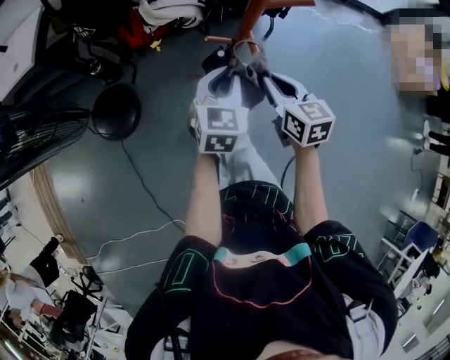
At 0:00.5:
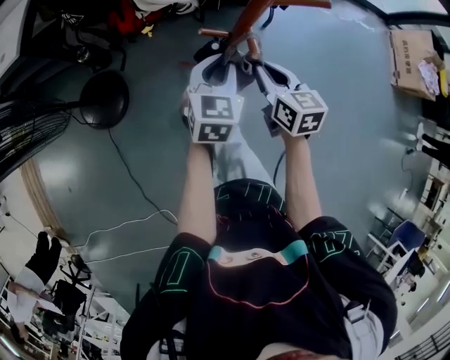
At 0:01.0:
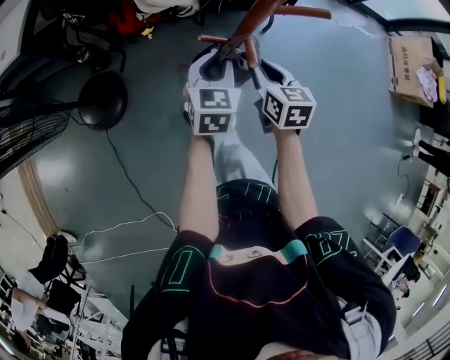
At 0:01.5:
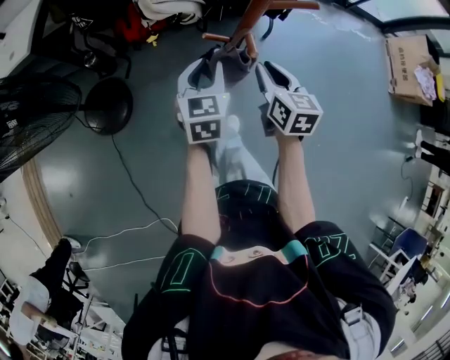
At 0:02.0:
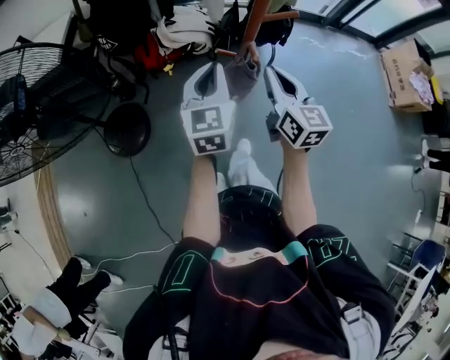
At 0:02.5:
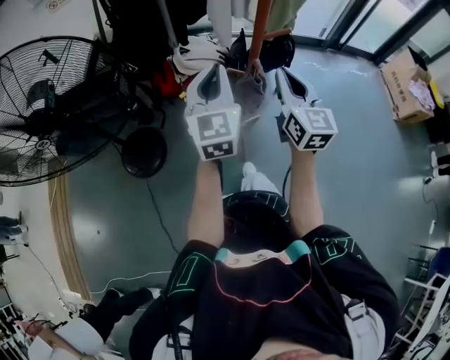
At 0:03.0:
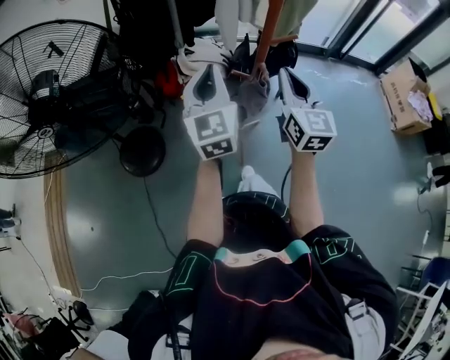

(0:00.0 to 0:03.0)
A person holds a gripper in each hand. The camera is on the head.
0:01.5 - 0:03.0: The left gripper shifts approximately 25 cm upward and to the left, changes its angle by roughly 30 degrees, and closes its fingers, while the right gripper travels upward by some 20 cm, and changes its angle by about 30 degrees.

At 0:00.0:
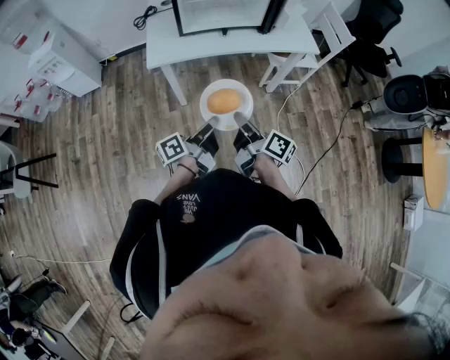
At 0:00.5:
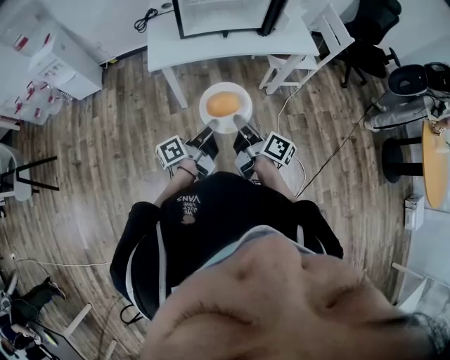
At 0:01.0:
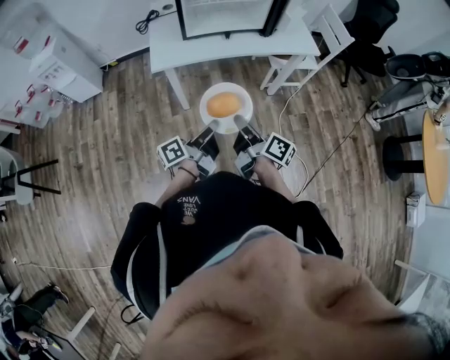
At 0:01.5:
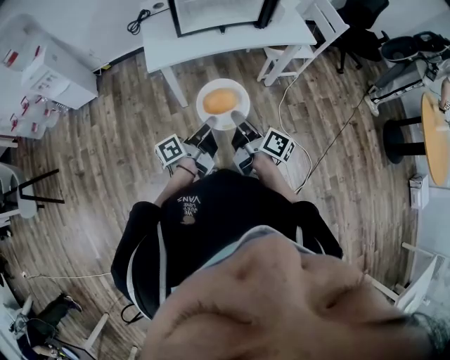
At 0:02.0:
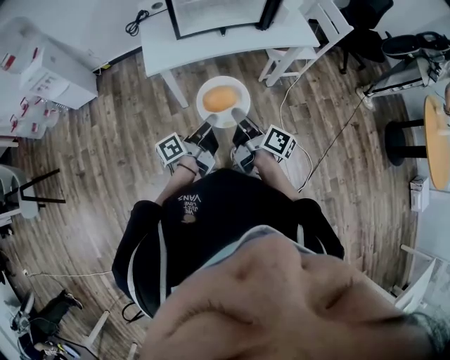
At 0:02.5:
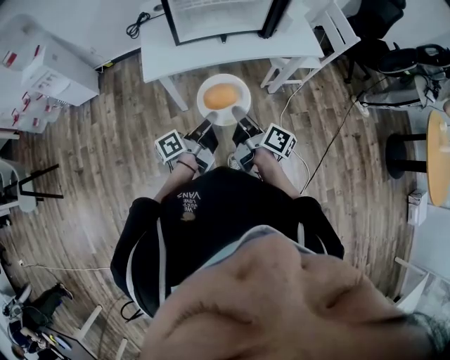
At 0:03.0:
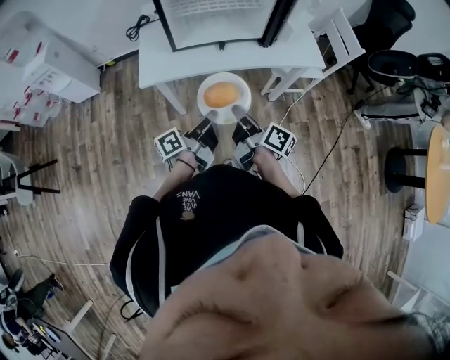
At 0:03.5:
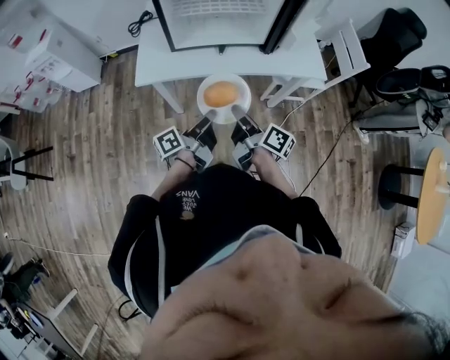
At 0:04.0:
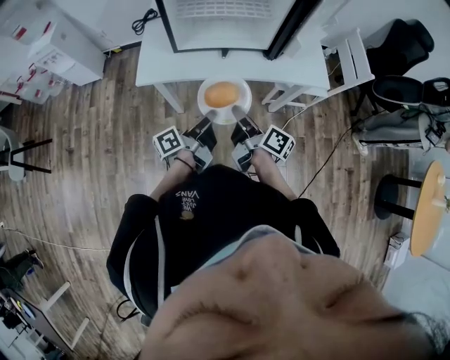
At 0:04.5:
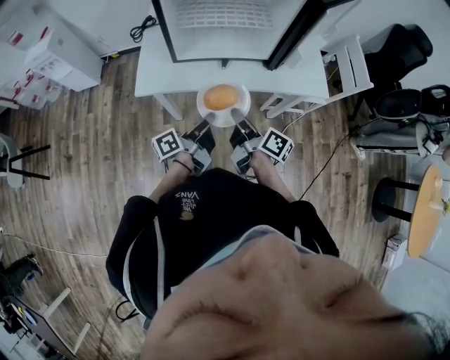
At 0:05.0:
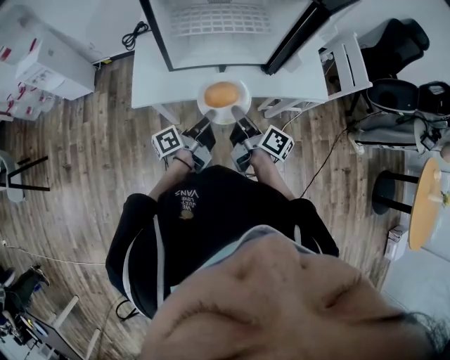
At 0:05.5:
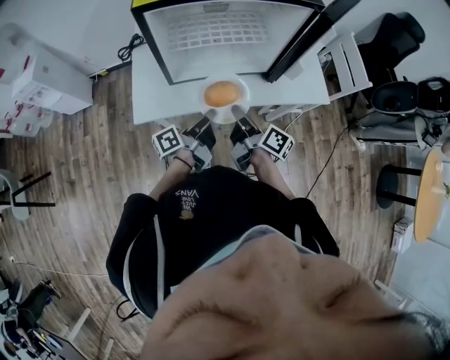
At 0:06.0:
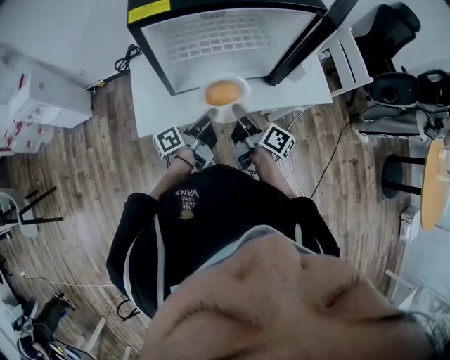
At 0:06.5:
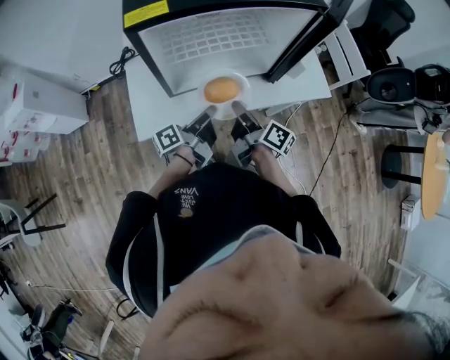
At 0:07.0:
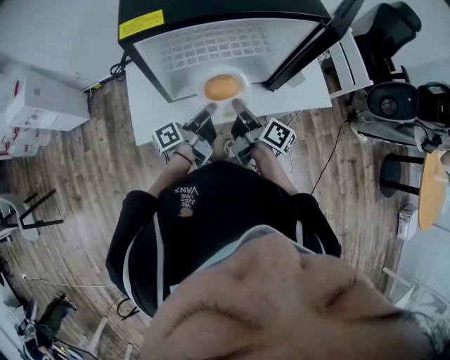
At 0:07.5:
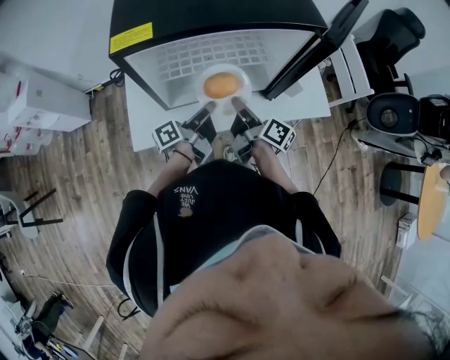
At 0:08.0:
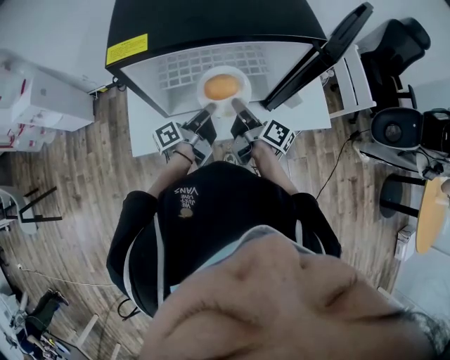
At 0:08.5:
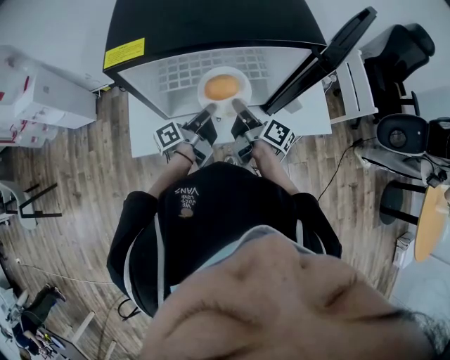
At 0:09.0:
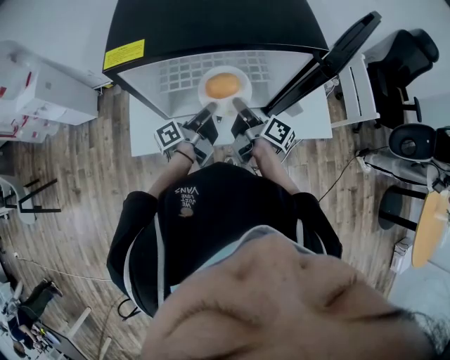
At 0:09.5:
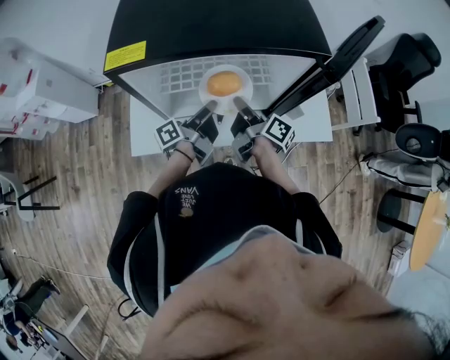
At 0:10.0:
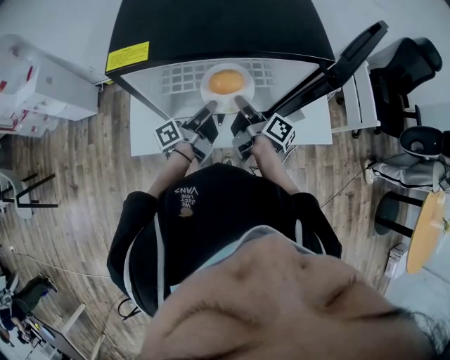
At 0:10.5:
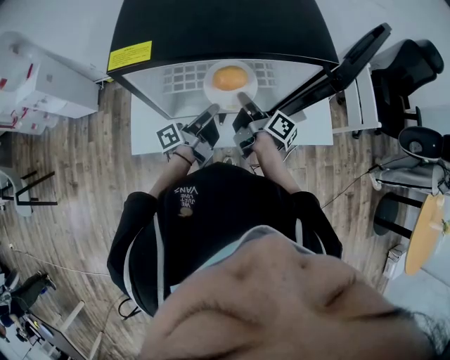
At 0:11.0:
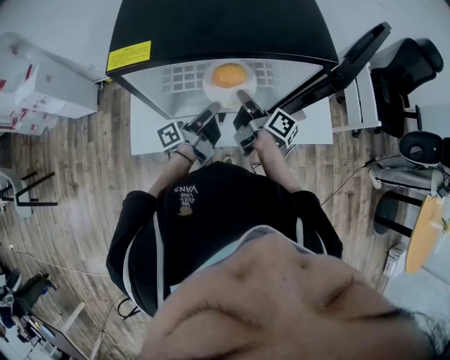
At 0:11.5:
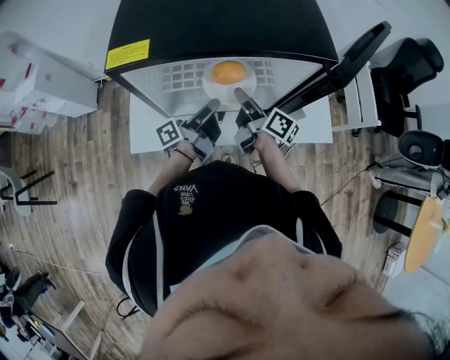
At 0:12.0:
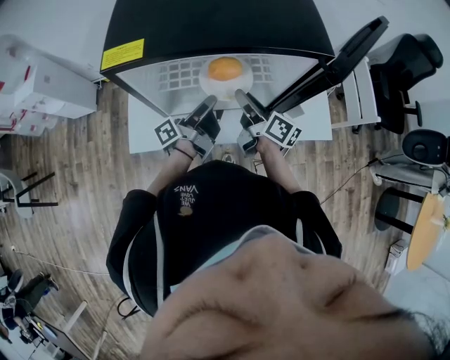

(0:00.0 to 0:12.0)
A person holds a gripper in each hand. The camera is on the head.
0:00.0 - 0:02.0: The right gripper moves some 5 cm. The left gripper changes place by approximately 5 cm.
0:02.0 - 0:04.0: Both grippers move forward and to the right, roughly 20 cm.
0:04.0 - 0:06.0: Both grippers travel together forward, about 15 cm.
0:06.0 - 0:08.0: Both grippers travel together forward, about 10 cm.
0:08.0 - 0:10.0: The grippers stay close to where they were, moving slightly.
0:10.0 - 0:12.0: The right gripper changes its angle by about 20 degrees, and opens up.

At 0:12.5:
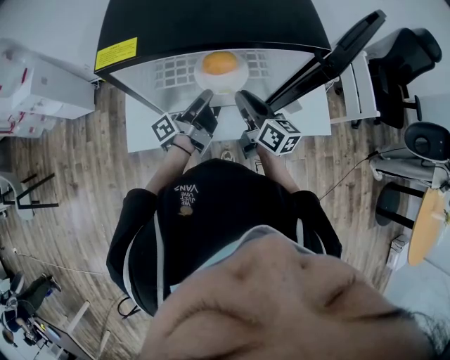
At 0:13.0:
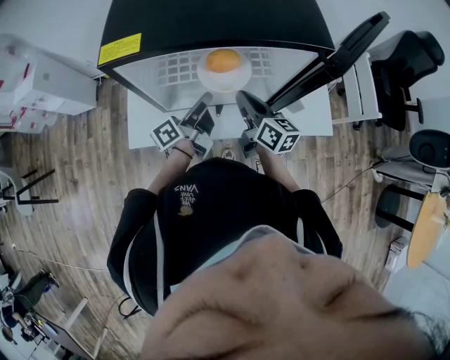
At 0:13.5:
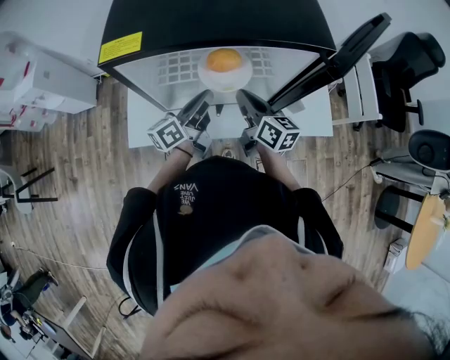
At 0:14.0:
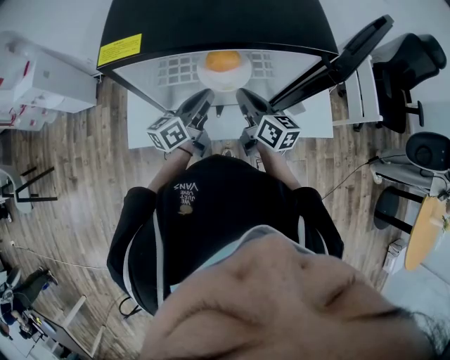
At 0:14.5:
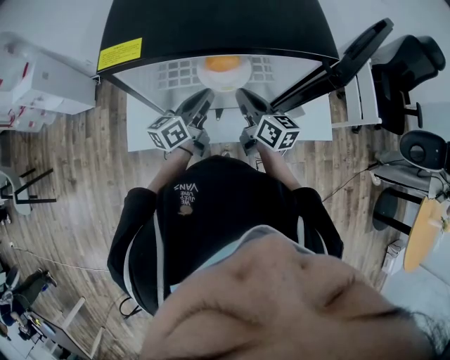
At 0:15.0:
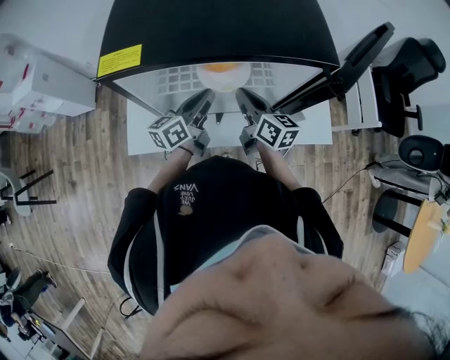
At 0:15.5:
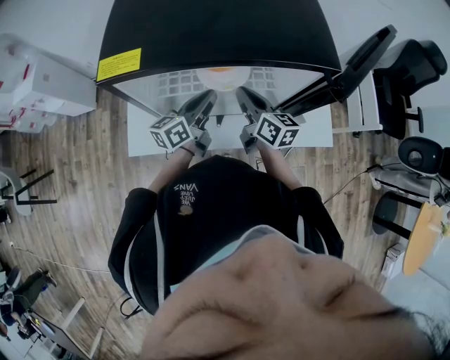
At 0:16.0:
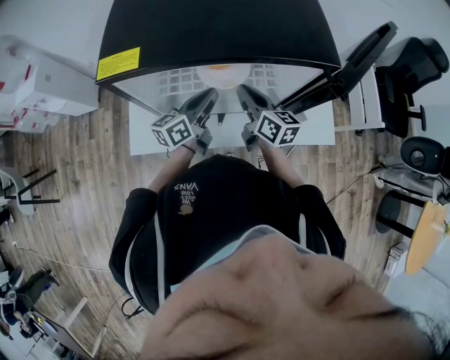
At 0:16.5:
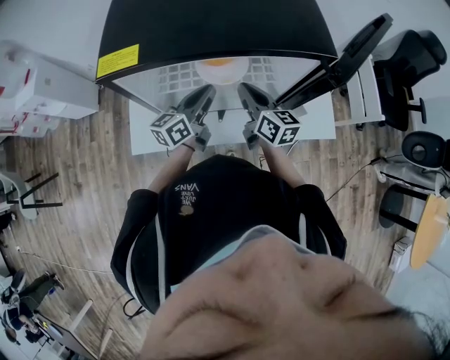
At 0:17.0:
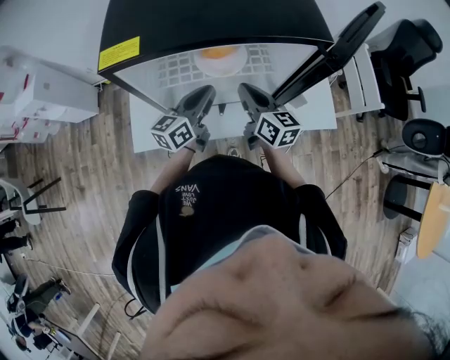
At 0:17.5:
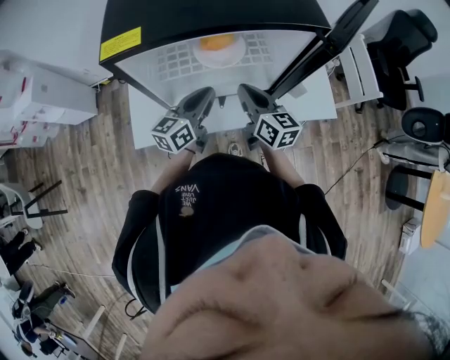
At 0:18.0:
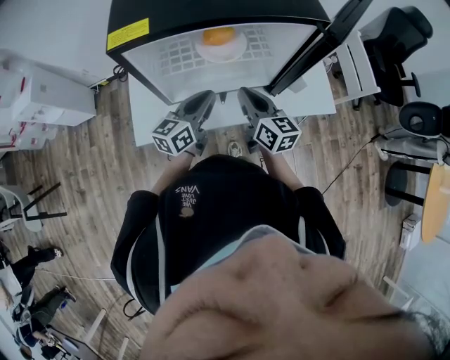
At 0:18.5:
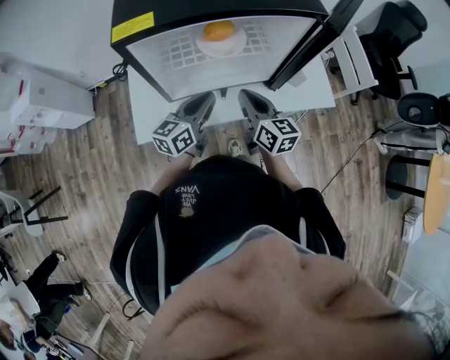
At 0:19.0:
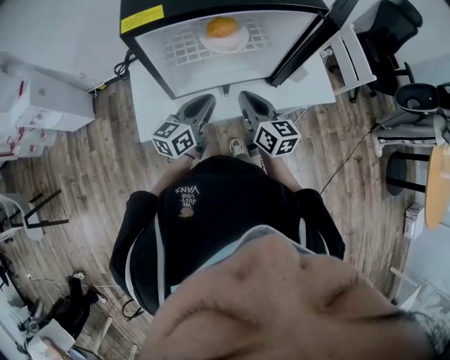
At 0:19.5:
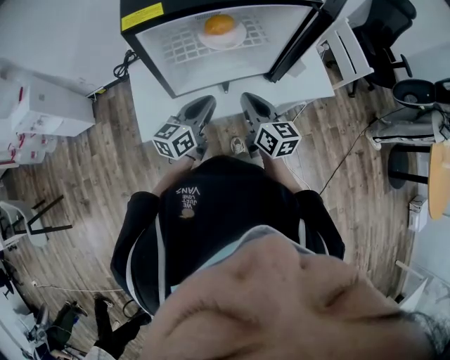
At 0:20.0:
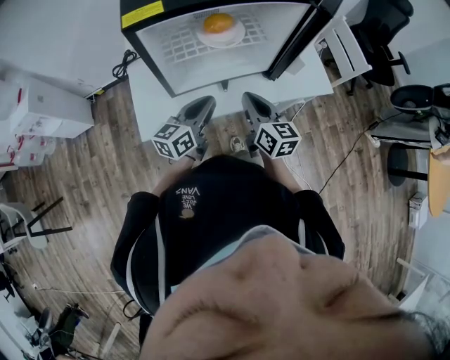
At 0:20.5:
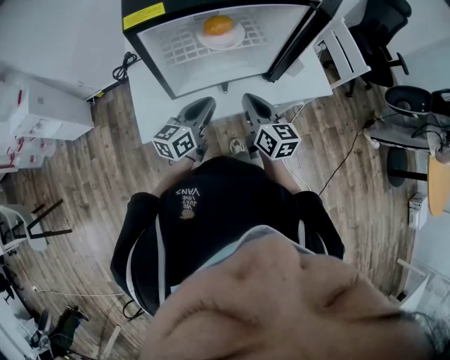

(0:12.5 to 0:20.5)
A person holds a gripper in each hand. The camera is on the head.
0:12.5 - 0:14.5: The left gripper rotates around the line of its fingers by approximately 40 degrees, clockwise from behind.
0:14.5 - 0:16.5: The grippers move only a little.
0:16.5 - 0:18.5: The two grippers go approximately 10 cm backward.
0:18.5 - 0:20.5: The right gripper travels backward by some 5 cm.

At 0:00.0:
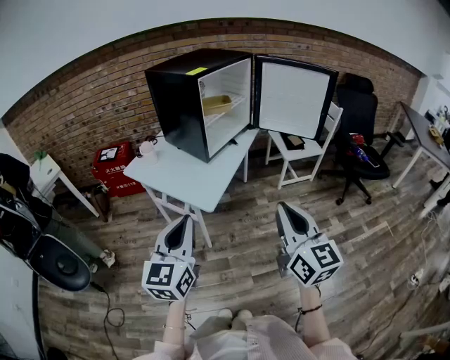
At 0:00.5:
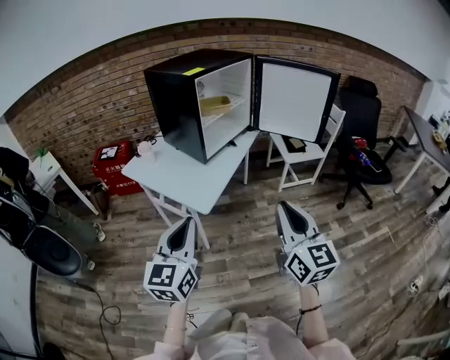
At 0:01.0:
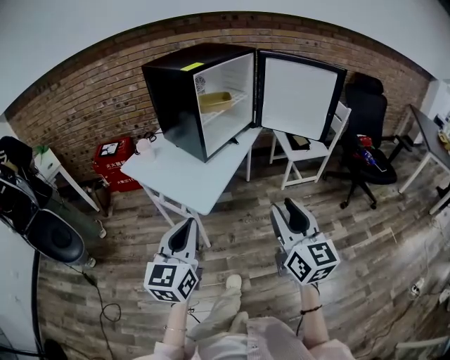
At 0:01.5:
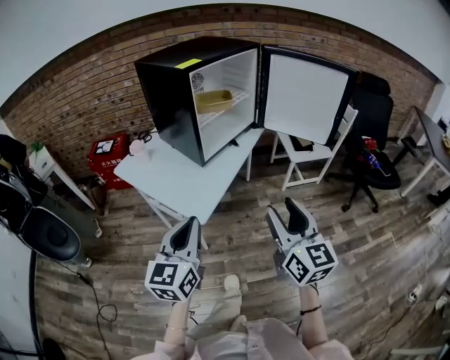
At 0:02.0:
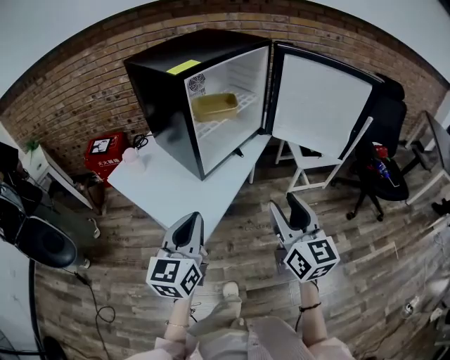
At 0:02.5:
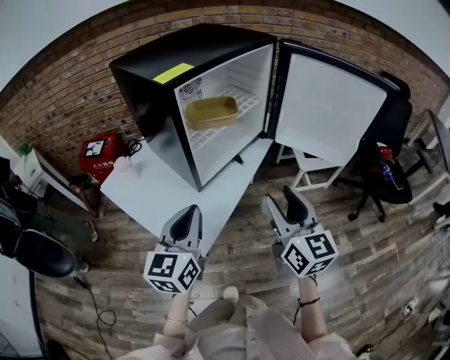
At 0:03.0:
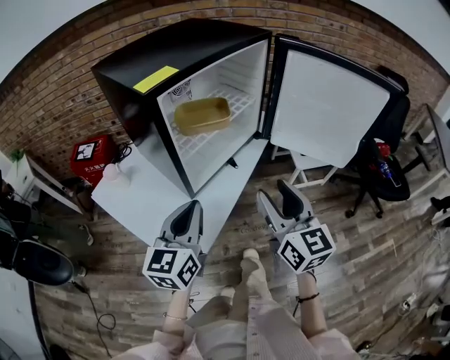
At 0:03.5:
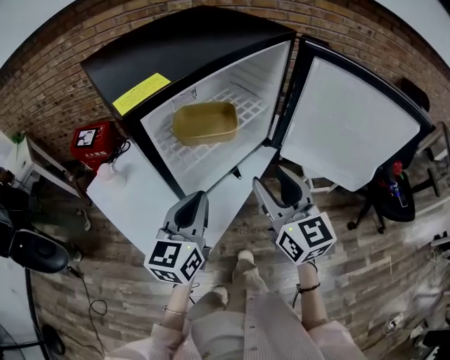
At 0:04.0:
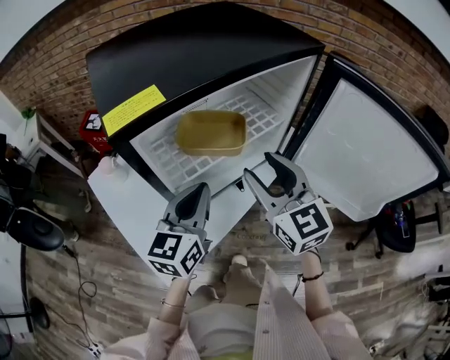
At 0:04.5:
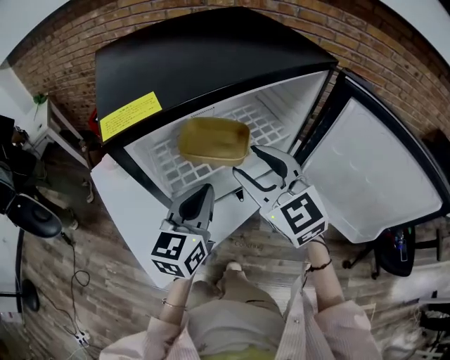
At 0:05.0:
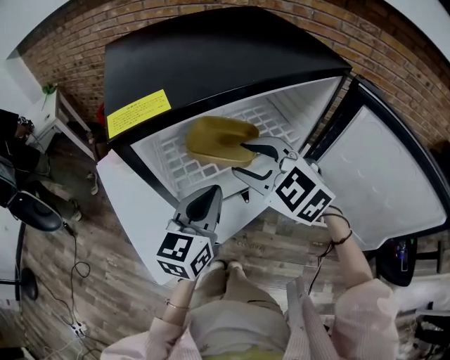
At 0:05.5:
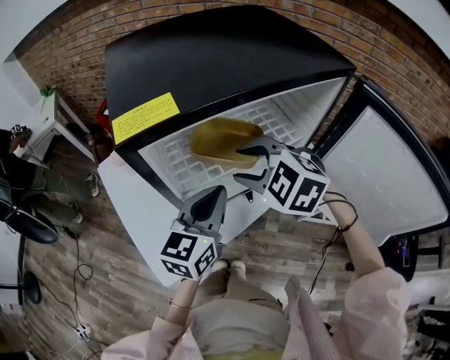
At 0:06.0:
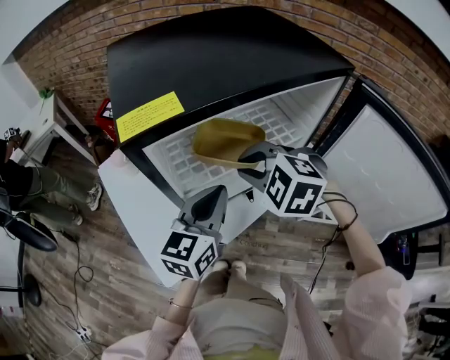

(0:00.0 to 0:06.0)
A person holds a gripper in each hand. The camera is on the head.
0:00.0 - 0:02.0: The grippers both shift forward by approximately 25 cm. The right gripper opens up.
0:02.0 - 0:04.0: The grippers both shift forward by some 30 cm. The right gripper swivels roughly 30 degrees.
0:04.0 - 0:06.0: The right gripper shifts some 10 cm to the left and forward, points its fingers some 40 degrees further downward, and closes up.
